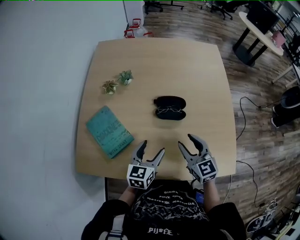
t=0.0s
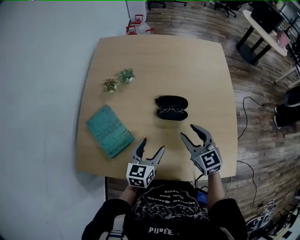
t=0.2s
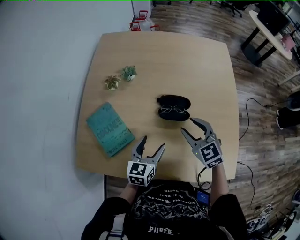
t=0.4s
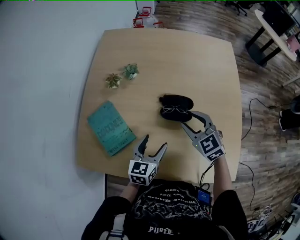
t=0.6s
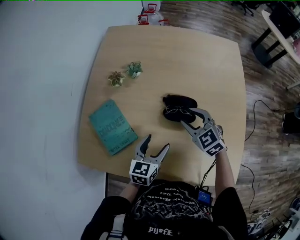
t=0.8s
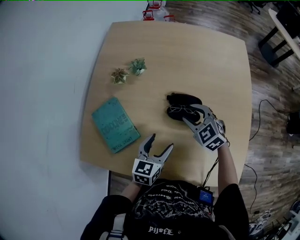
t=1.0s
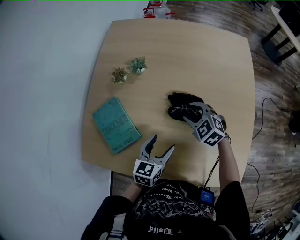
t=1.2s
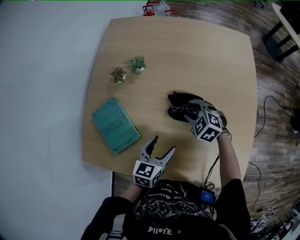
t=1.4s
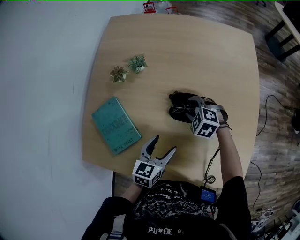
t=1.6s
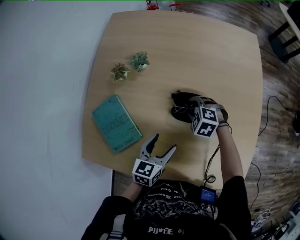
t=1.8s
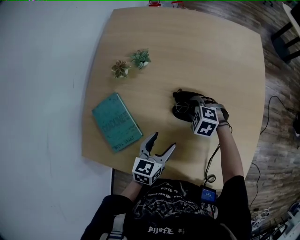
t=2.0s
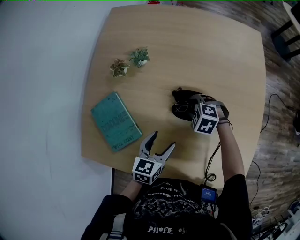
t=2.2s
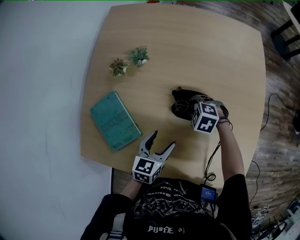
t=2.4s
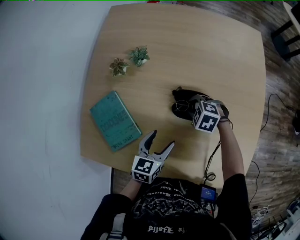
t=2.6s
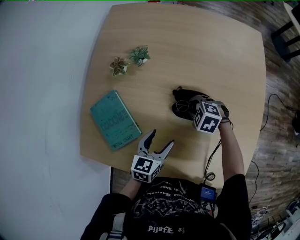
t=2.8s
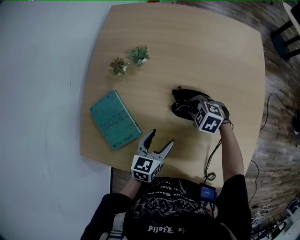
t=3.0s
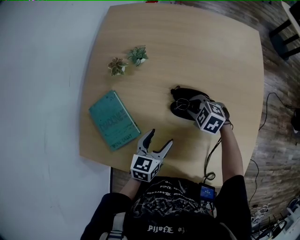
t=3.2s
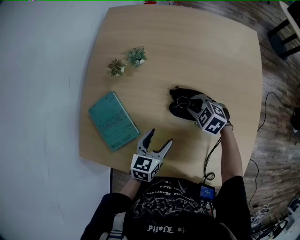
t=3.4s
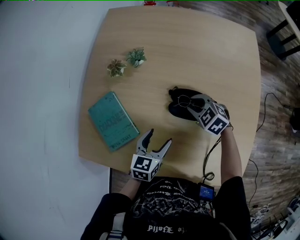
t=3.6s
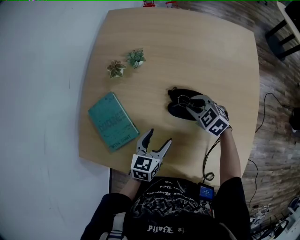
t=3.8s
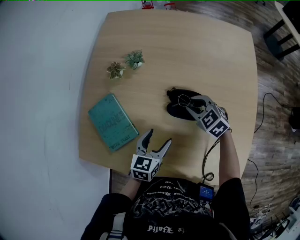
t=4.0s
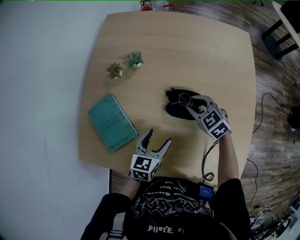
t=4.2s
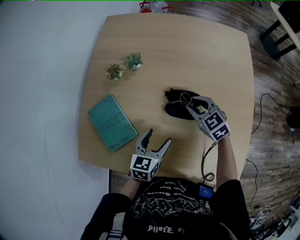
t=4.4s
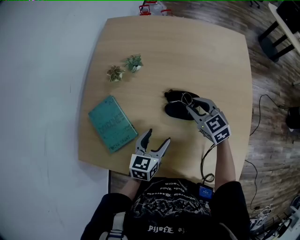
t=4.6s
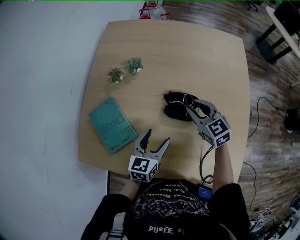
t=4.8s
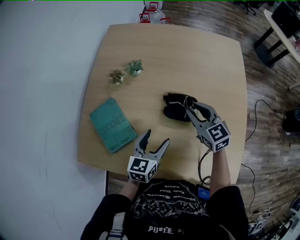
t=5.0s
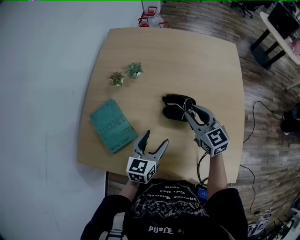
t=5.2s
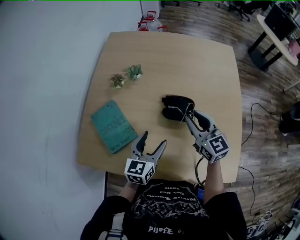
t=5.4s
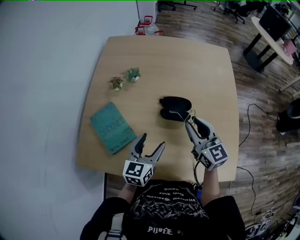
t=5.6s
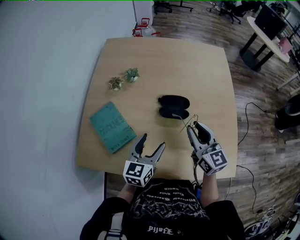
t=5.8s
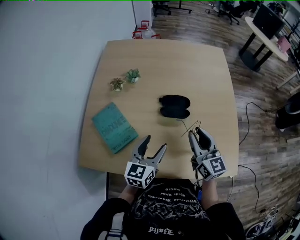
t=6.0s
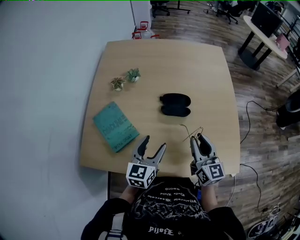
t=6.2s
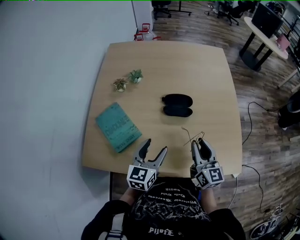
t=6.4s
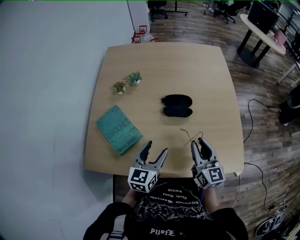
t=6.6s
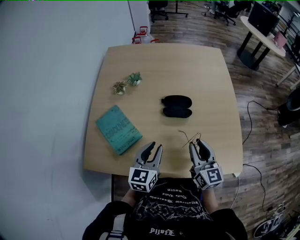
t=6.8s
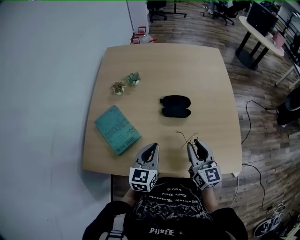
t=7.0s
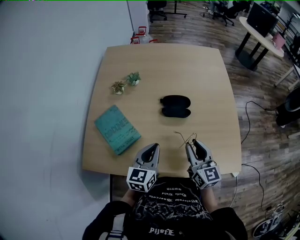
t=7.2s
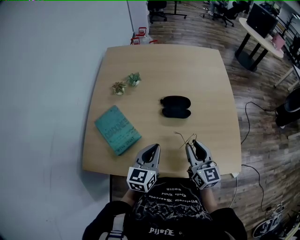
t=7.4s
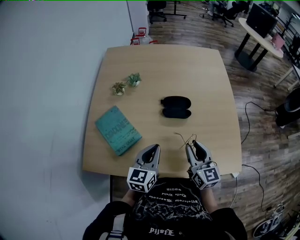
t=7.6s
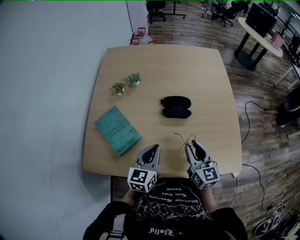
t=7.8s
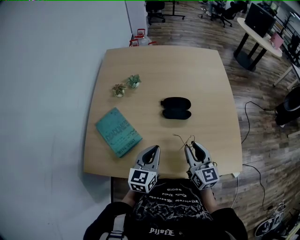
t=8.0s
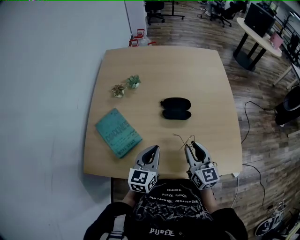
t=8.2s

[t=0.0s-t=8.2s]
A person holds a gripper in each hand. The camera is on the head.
t=0.0s to t=1.6s: The right gripper shifts about 25 cm forward and downward, and tips its fingers downward by approximately 40 degrees. Meanwhile the left gripper moves approximately 5 cm.
t=1.6s to t=3.2s: There are only small adjustments of the grippers.
t=3.2s to t=5.0s: The right gripper heads upward, covering roughly 15 cm, and tips its fingers upward by about 40 degrees. The left gripper goes about 5 cm upward.
t=5.0s to t=6.6s: The right gripper is displaced backward by some 20 cm, and swivels some 40 degrees, while the left gripper travels backward by approximately 10 cm.
t=6.6s to t=8.2s: The left gripper closes.

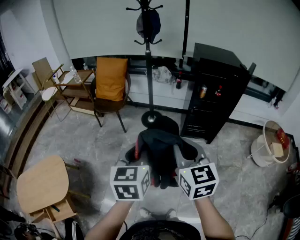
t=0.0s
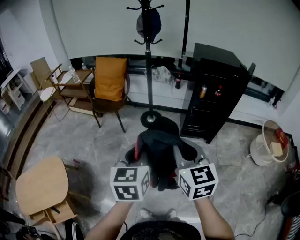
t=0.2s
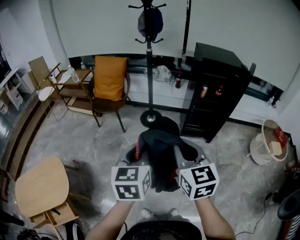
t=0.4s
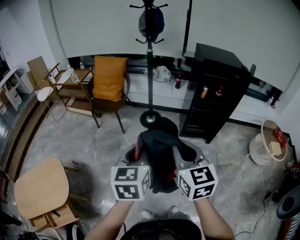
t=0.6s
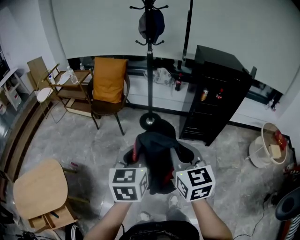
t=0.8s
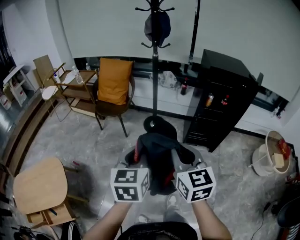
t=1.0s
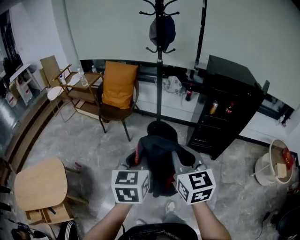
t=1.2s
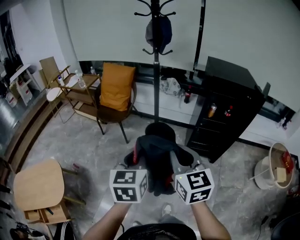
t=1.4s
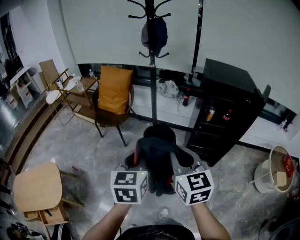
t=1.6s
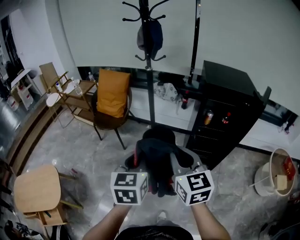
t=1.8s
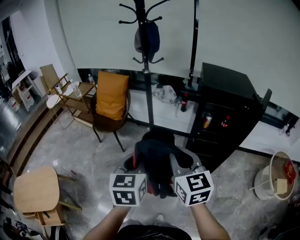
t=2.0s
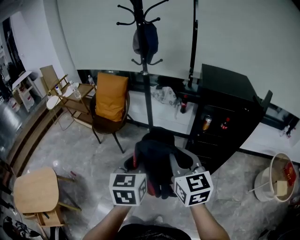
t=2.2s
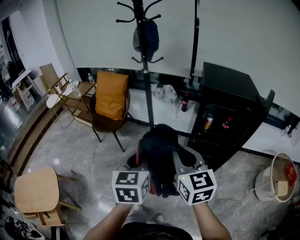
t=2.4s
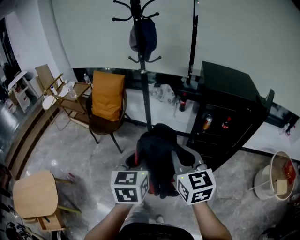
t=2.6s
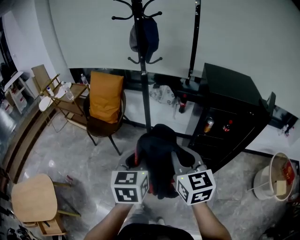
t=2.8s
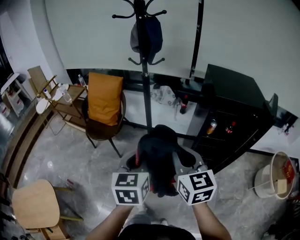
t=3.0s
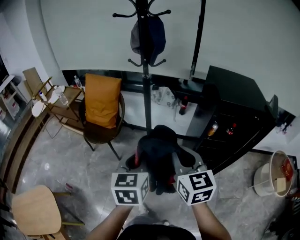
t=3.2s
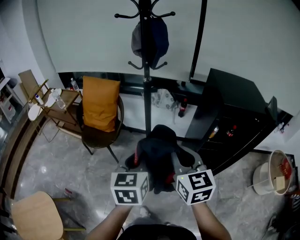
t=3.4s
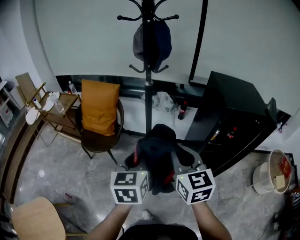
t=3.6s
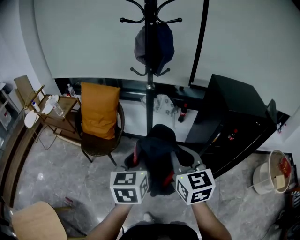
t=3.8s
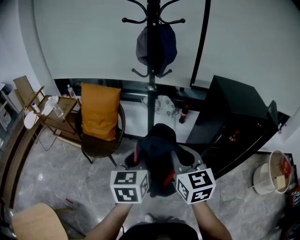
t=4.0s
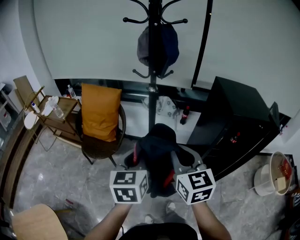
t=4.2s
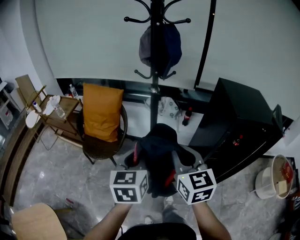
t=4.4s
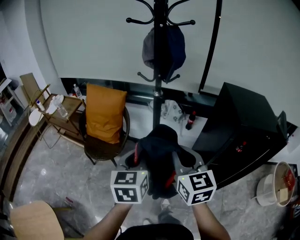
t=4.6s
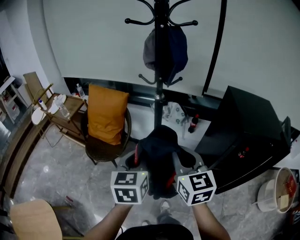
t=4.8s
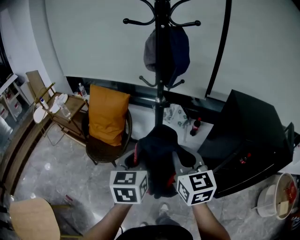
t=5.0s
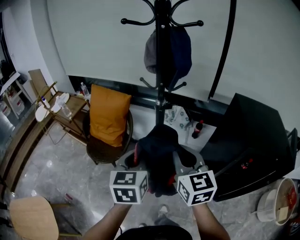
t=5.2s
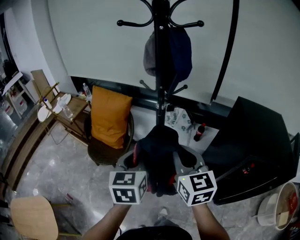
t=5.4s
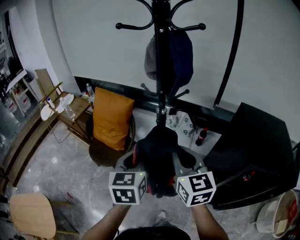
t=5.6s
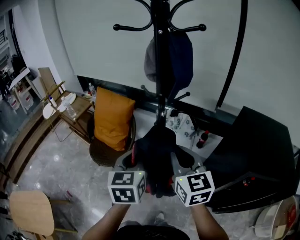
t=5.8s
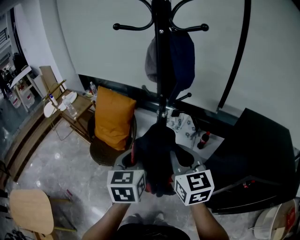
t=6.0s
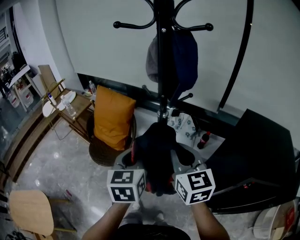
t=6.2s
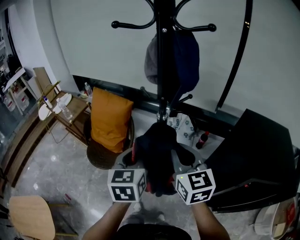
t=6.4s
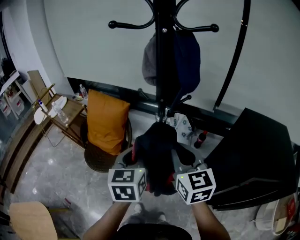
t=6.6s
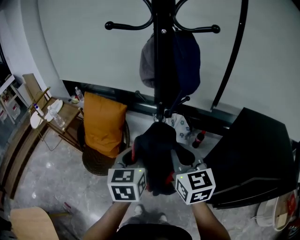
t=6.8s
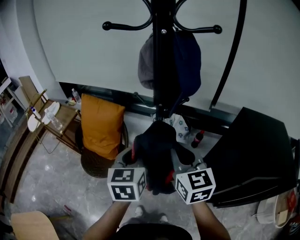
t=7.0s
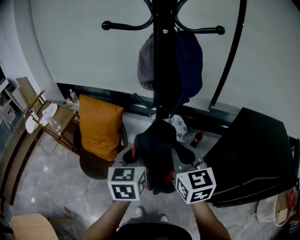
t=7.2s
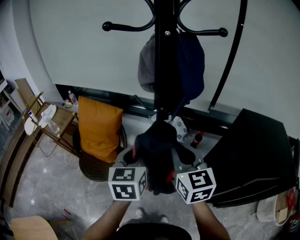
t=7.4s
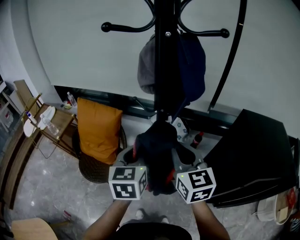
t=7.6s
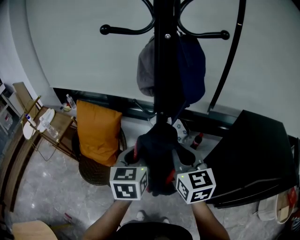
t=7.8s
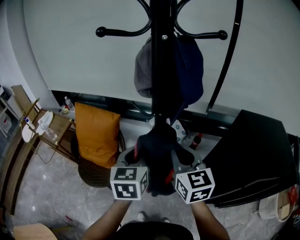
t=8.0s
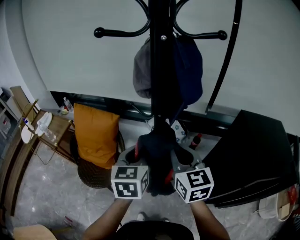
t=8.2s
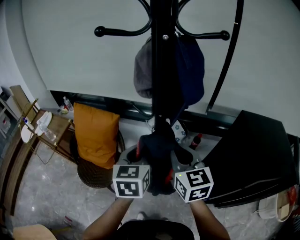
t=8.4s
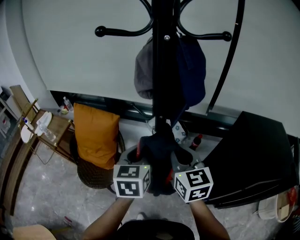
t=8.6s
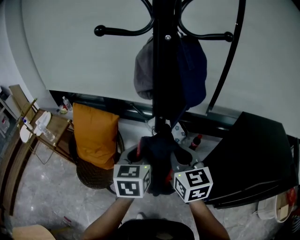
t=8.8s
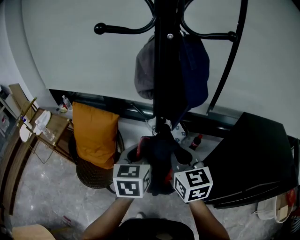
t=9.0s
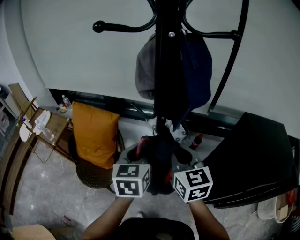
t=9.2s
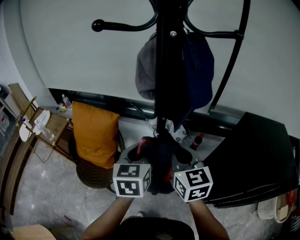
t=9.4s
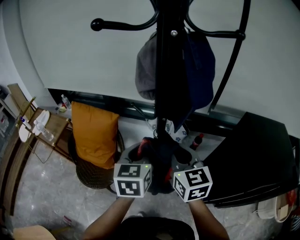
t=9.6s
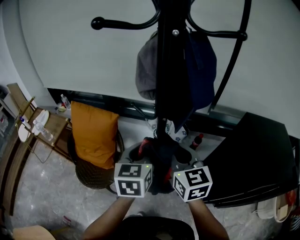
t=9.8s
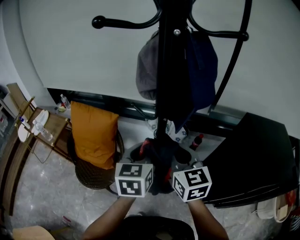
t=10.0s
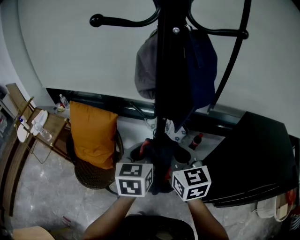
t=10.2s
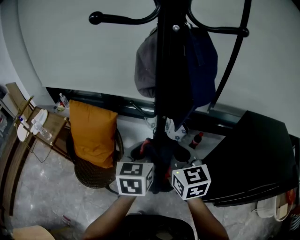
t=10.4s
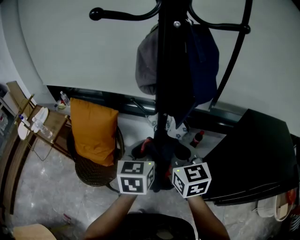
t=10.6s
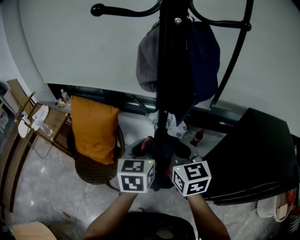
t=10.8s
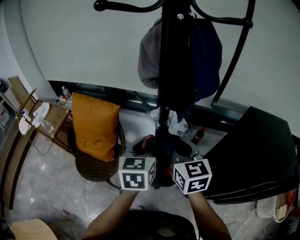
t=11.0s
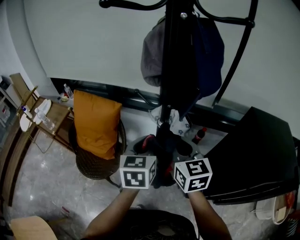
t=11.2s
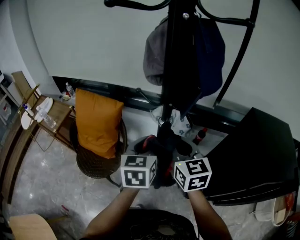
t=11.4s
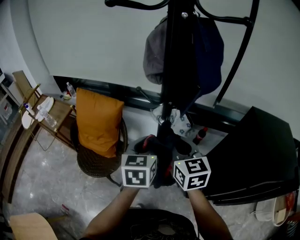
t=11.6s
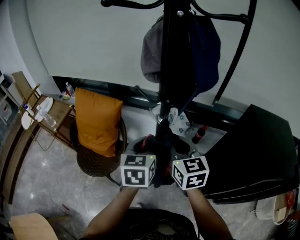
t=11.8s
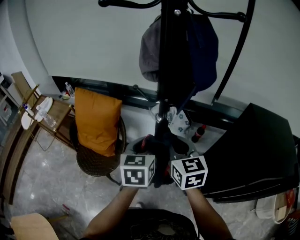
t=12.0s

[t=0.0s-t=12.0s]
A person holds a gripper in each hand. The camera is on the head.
t=0.0s to t=1.6s: Both grippers move forward, about 15 cm.
t=1.6s to t=3.0s: Both grippers move forward, some 15 cm.
t=3.0s to t=4.4s: Both grippers move forward and to the left, about 20 cm.
t=4.4s to t=6.0s: Both grippers move forward, roughly 15 cm.
t=6.0s to t=7.6s: Both grippers move forward, some 10 cm.
t=7.6s to t=9.0s: The grippers make only small movements.
t=9.0s to t=12.0s: The grippers move only a little.

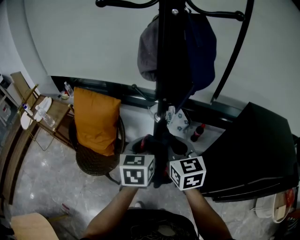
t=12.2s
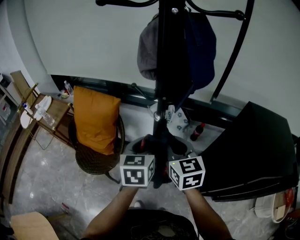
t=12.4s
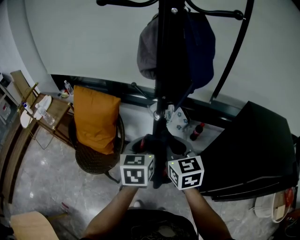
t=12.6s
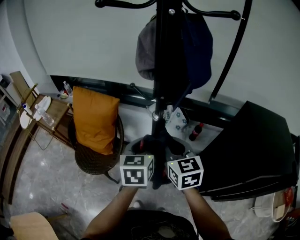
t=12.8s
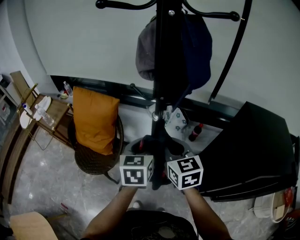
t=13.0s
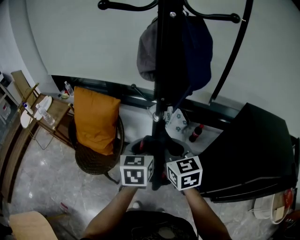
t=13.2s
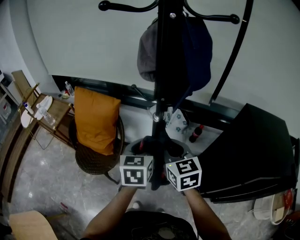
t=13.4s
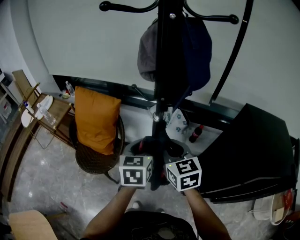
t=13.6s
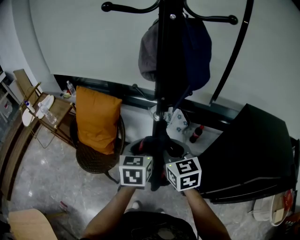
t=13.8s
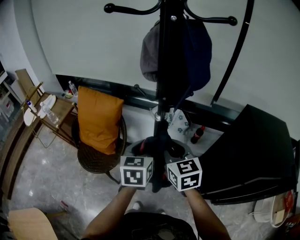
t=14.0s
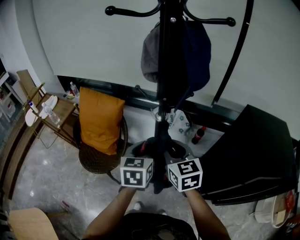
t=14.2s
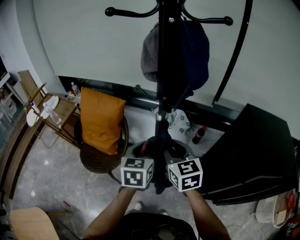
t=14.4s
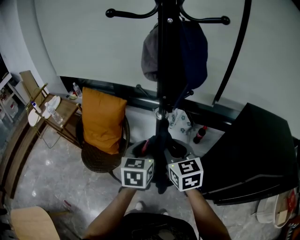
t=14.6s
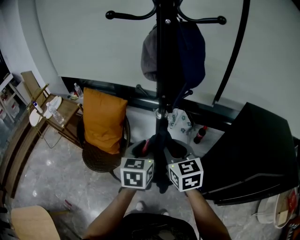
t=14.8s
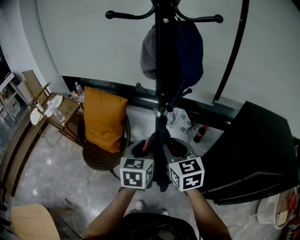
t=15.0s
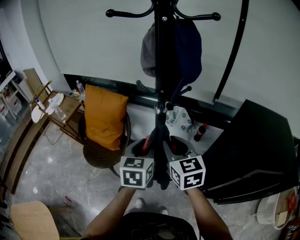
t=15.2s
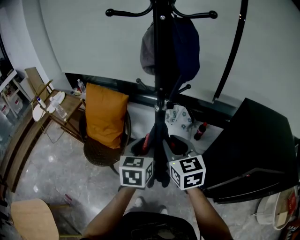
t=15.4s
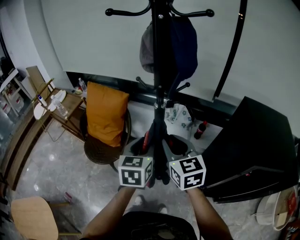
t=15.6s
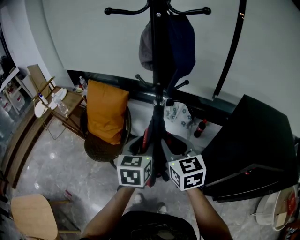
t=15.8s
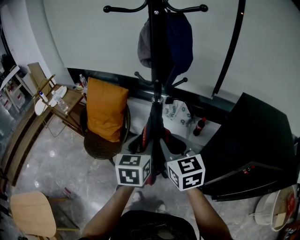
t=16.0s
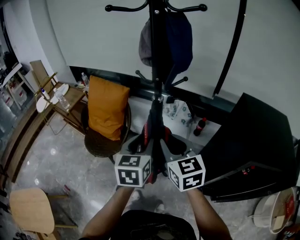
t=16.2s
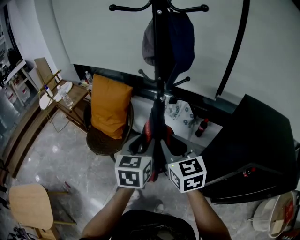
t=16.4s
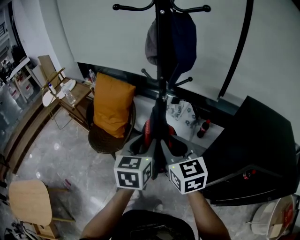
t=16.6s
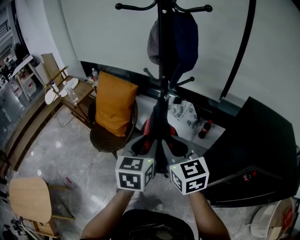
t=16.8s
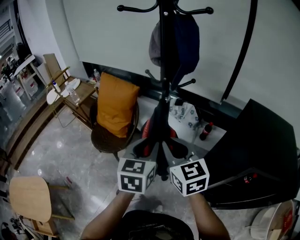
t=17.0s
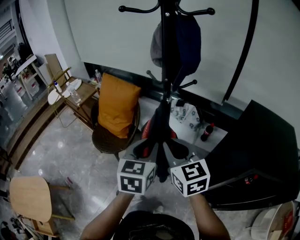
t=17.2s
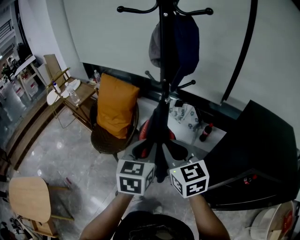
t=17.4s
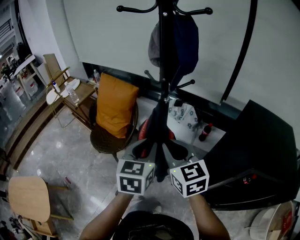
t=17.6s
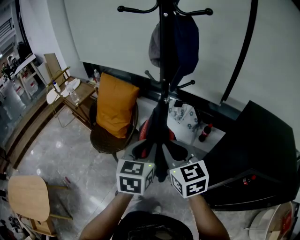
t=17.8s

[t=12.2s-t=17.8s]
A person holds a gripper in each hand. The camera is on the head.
t=12.2s to t=13.6s: The grippers stay close to where they were, moving slightly.
t=13.6s to t=15.0s: The left gripper opens up.
t=15.0s to t=16.4s: The grippers both shift backward by roughly 5 cm.
t=16.4s to t=17.8s: There are only small adjustments of the grippers.
